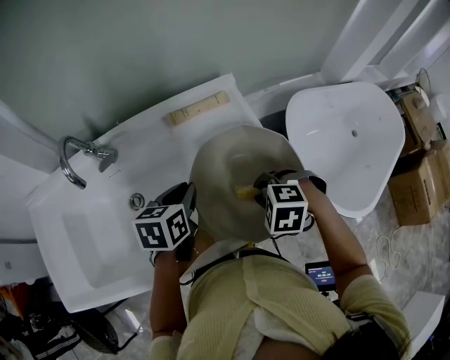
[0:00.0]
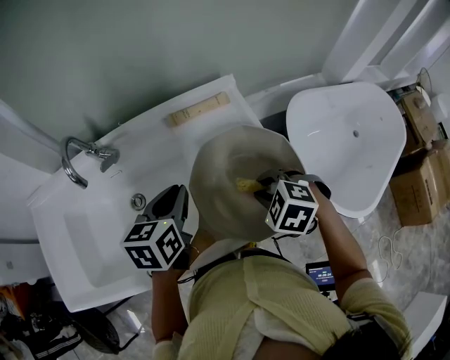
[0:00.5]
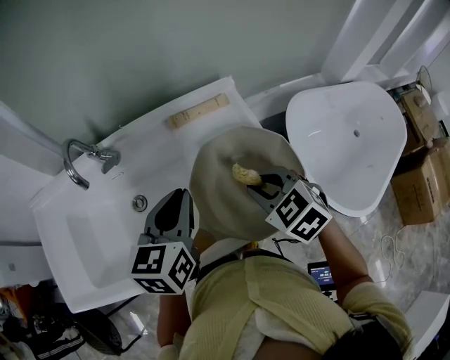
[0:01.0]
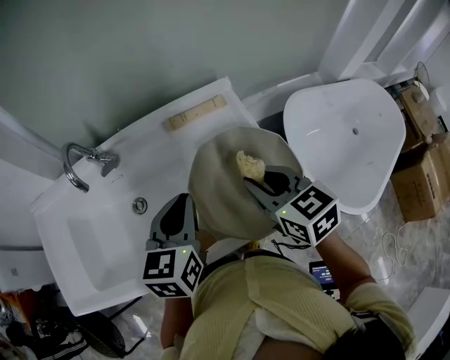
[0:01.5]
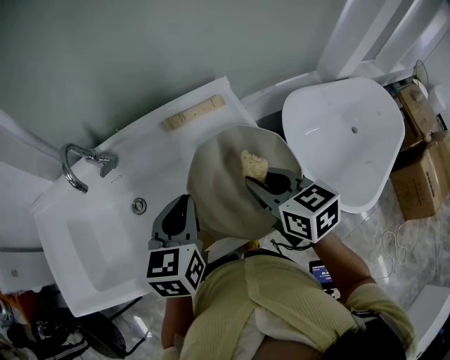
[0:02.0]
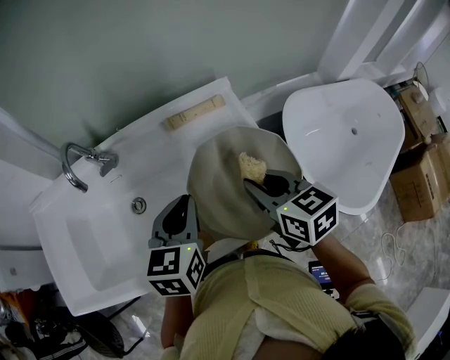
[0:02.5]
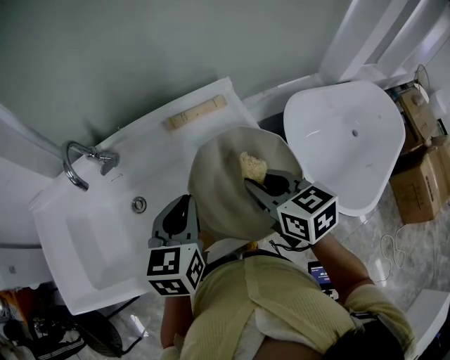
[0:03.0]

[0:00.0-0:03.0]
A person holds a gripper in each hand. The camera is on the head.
0:00.0 to 0:01.5: Both grippers move upward, roughly 10 cm. The left gripper rotates about 20 degrees. The right gripper tilts its fingers approximately 40 degrees upward.
0:01.5 to 0:03.0: The grippers make only small movements.

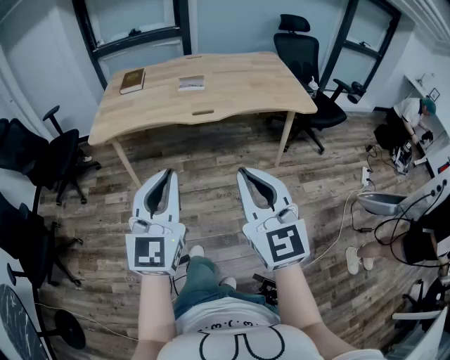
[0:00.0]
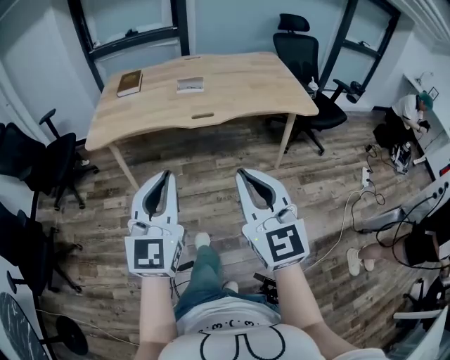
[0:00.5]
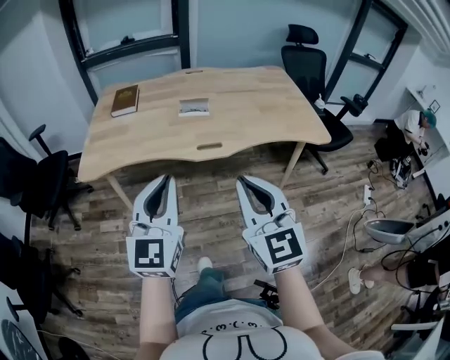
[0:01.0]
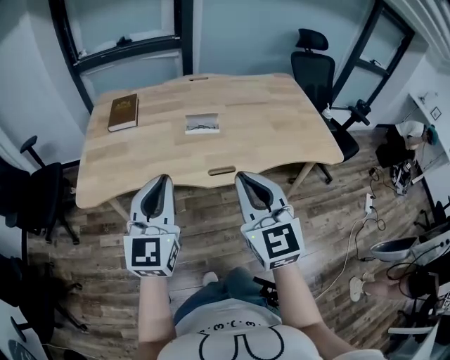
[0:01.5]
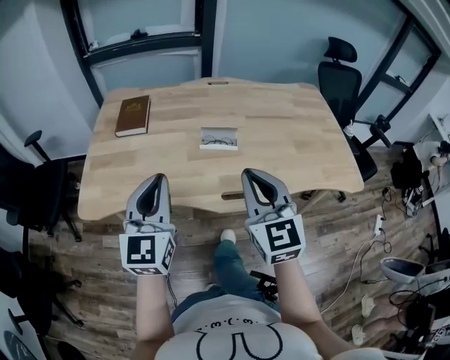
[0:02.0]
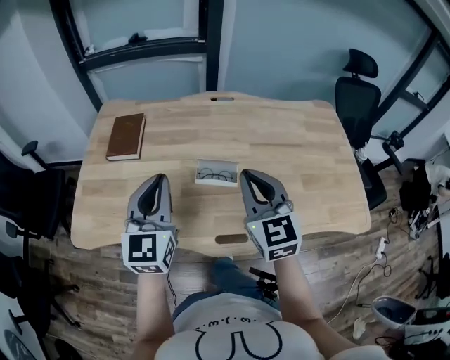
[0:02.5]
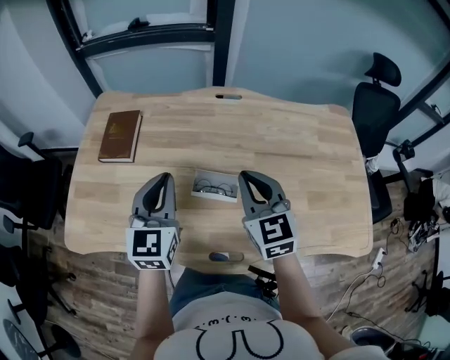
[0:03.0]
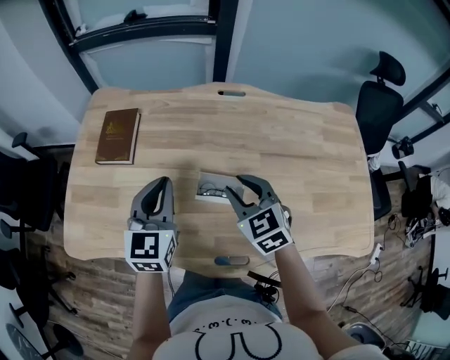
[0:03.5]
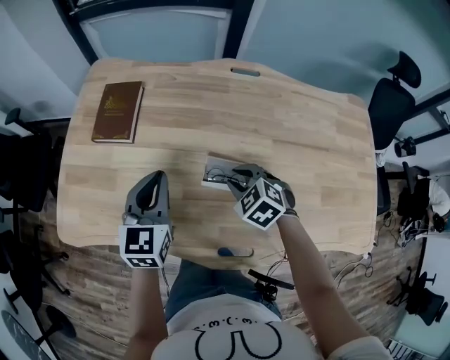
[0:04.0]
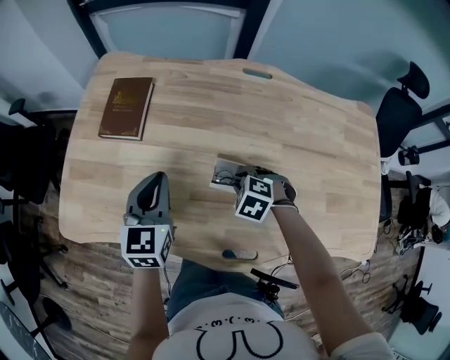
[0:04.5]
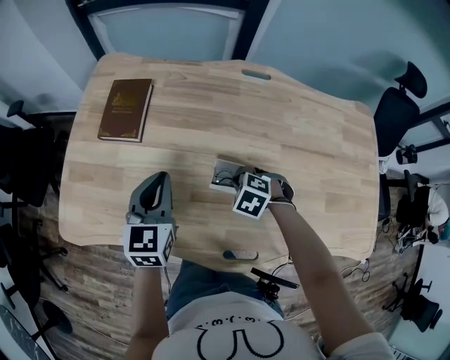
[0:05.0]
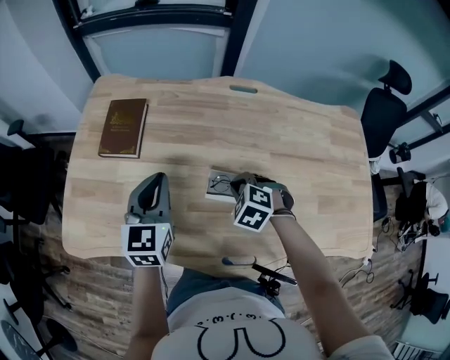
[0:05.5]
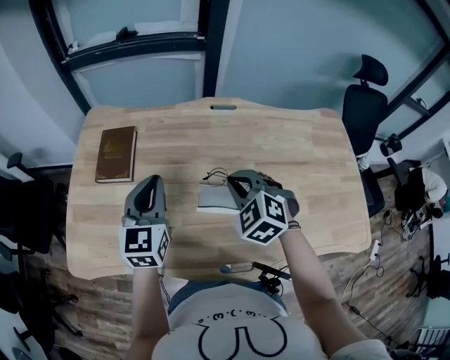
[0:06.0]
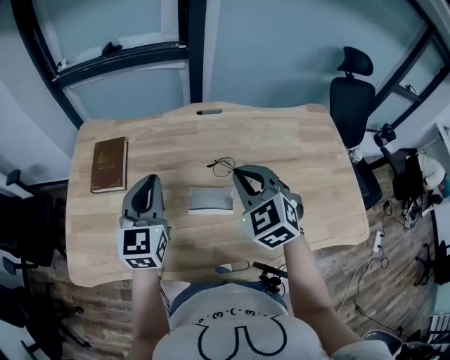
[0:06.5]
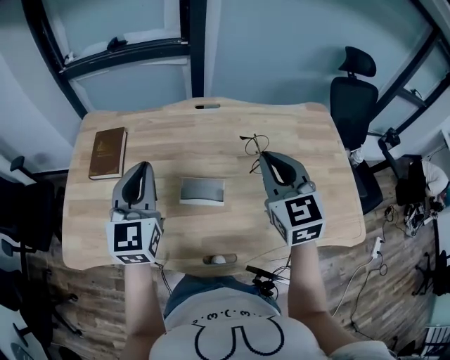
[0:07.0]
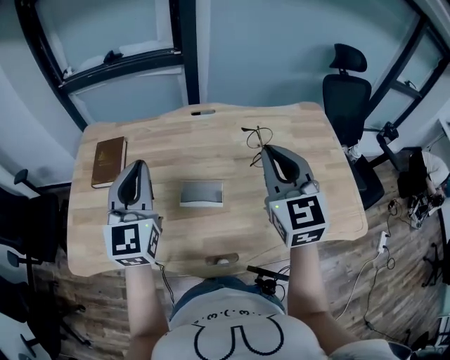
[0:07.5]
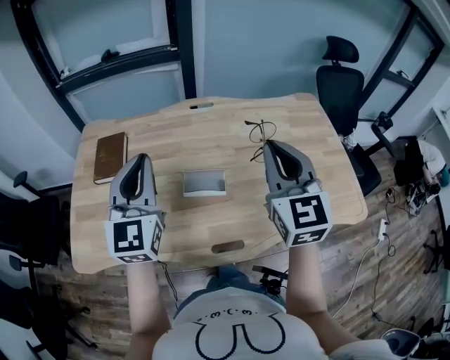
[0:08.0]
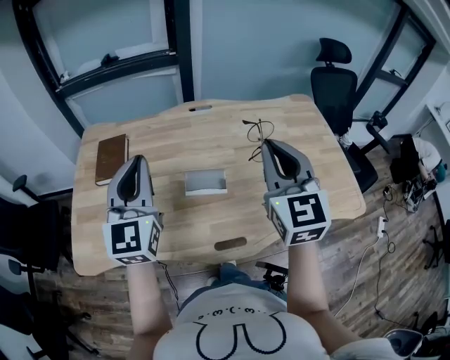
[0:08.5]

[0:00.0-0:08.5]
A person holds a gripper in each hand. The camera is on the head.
0:00.0 to 0:02.0: Both grippers are carried forward, some 50 cm.
0:02.0 to 0:04.0: Both grippers travel together forward and downward, some 35 cm. The left gripper rotates approximately 20 degrees; the right gripper angles its fingers downward, by some 50 degrees, and opens up.
0:04.0 to 0:06.5: The right gripper heads upward, covering roughly 20 cm, turns by some 30 degrees, and closes. The left gripper heads upward, covering approximately 10 cm.
0:06.5 to 0:08.5: The left gripper goes roughly 15 cm upward and backward. The right gripper shifts about 20 cm upward, backward and to the right, and changes its angle by roughly 40 degrees.

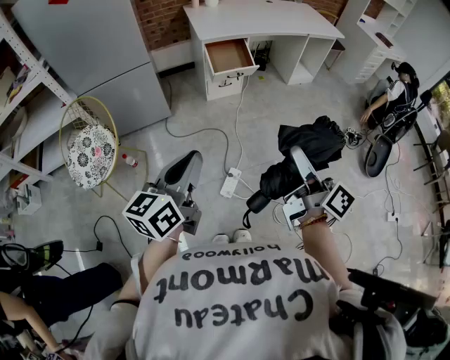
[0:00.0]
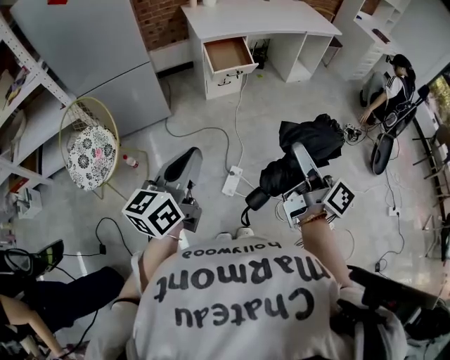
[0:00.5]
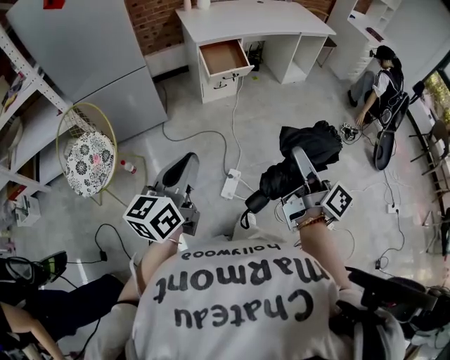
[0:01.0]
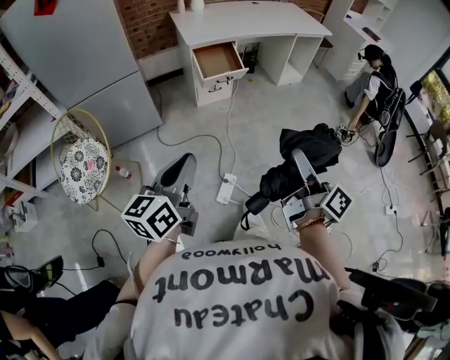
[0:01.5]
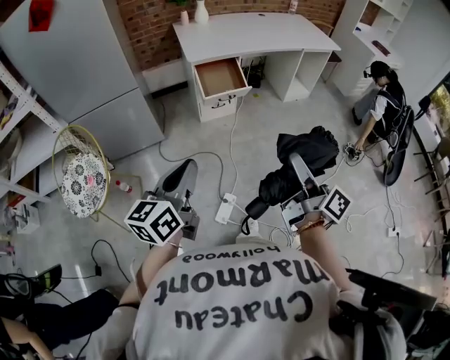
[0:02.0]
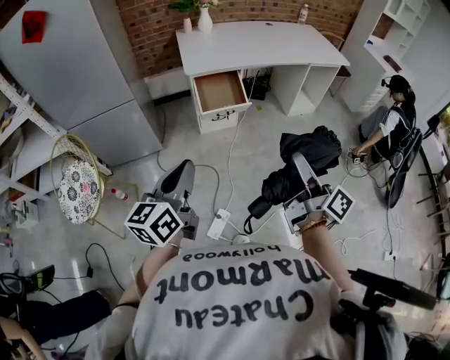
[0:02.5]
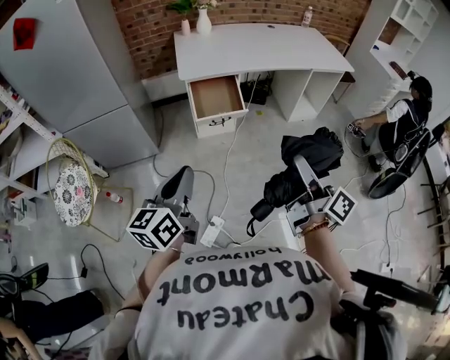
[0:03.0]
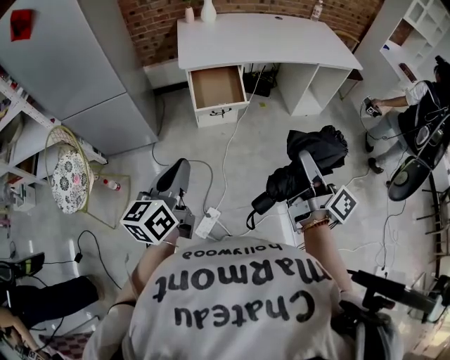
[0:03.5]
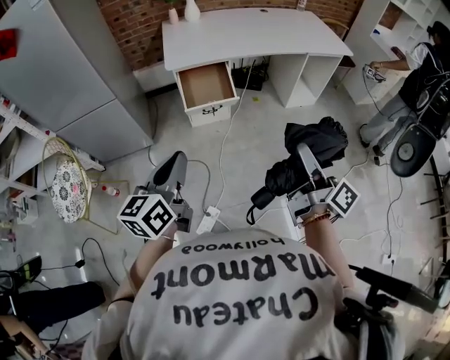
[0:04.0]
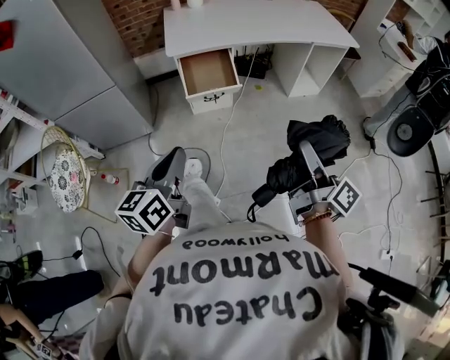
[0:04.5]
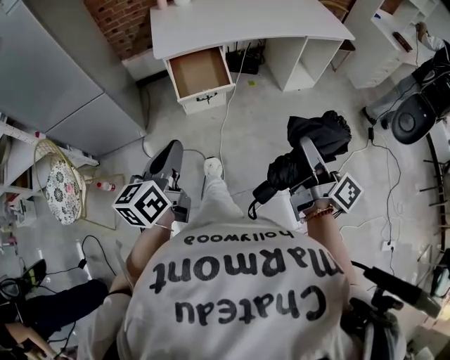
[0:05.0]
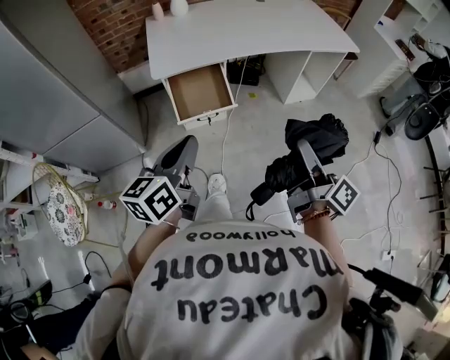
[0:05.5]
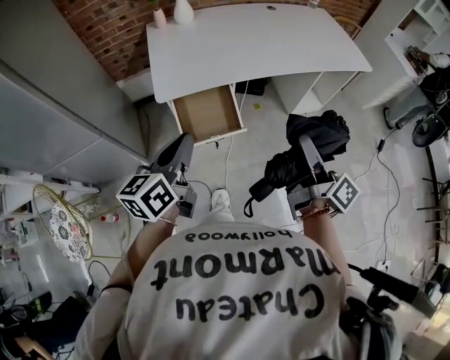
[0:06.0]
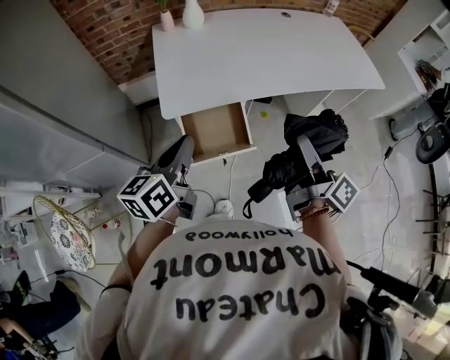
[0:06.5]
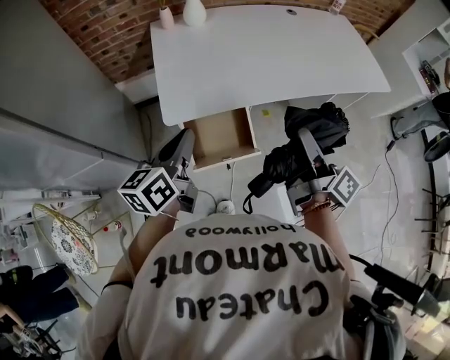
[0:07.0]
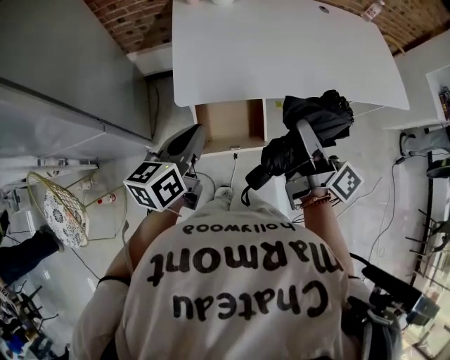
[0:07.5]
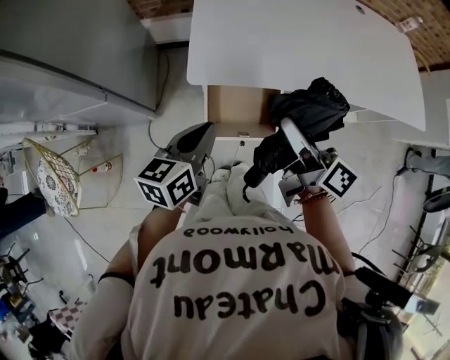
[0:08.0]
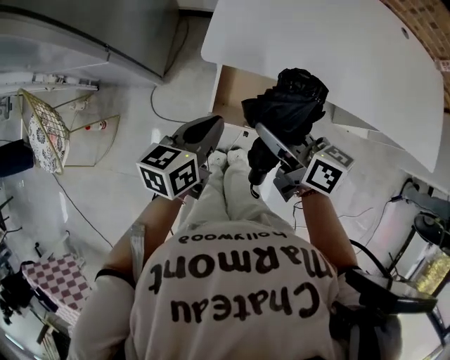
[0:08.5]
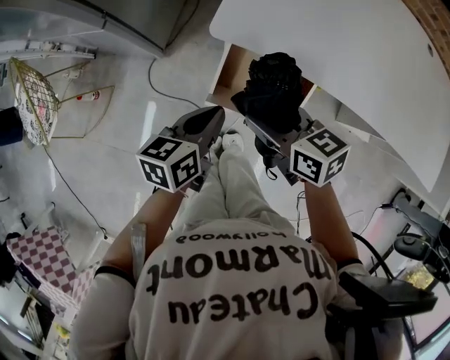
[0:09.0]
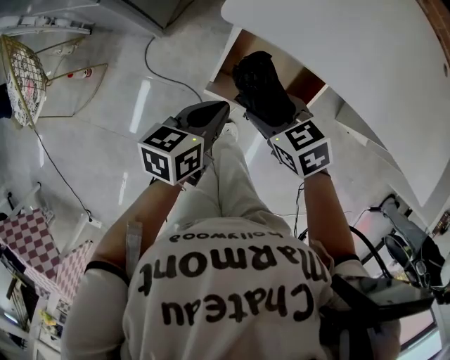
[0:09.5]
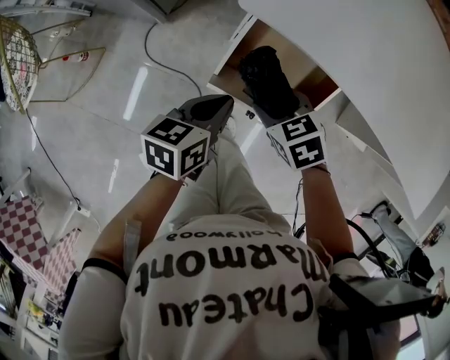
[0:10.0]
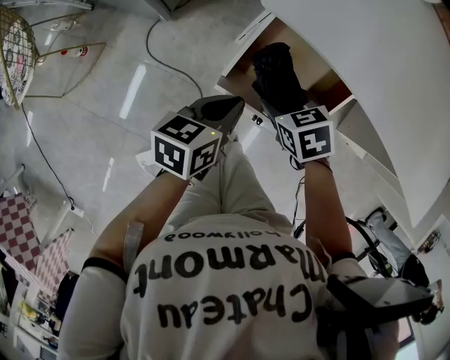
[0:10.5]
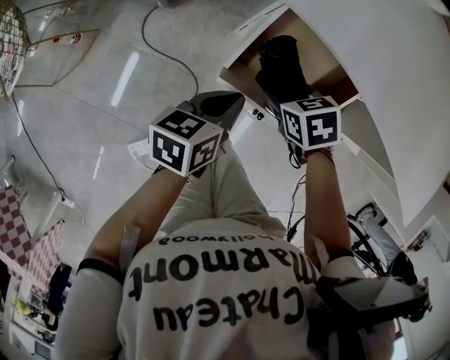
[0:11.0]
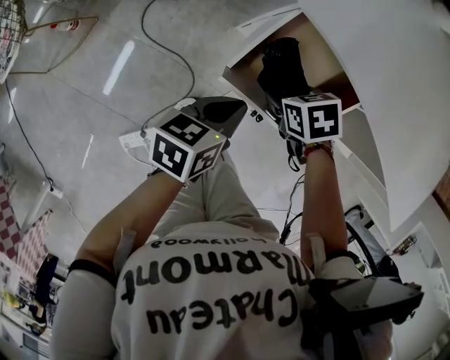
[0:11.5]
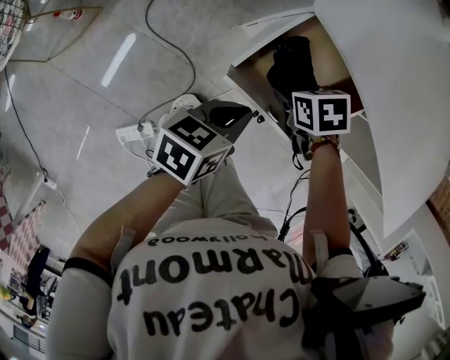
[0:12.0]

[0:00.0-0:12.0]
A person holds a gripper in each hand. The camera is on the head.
0:00.0 to 0:02.0: The grippers both shift forward by about 15 cm.
0:02.0 to 0:04.0: The two grippers go about 25 cm forward and to the right.
0:04.0 to 0:06.0: The grippers both shift forward by about 30 cm.
0:06.0 to 0:08.0: The left gripper is displaced downward, forward and to the left by approximately 20 cm. Meanwhile the right gripper is displaced forward and to the left by approximately 25 cm, and rotates approximately 30 degrees.
0:08.0 to 0:10.0: The left gripper heads downward, covering roughly 20 cm, and turns by about 20 degrees. The right gripper is displaced downward by about 30 cm, and points its fingers about 60 degrees further downward.
0:10.0 to 0:12.0: The left gripper shifts by approximately 5 cm; the right gripper goes about 10 cm downward, and turns by approximately 20 degrees.

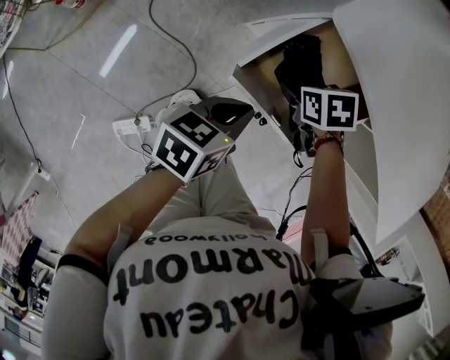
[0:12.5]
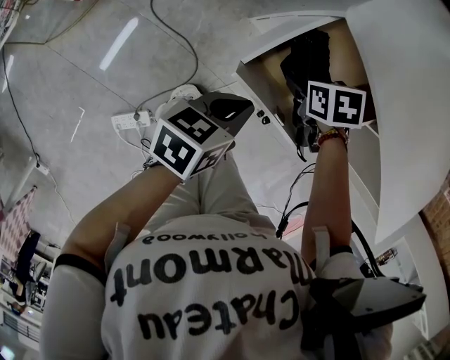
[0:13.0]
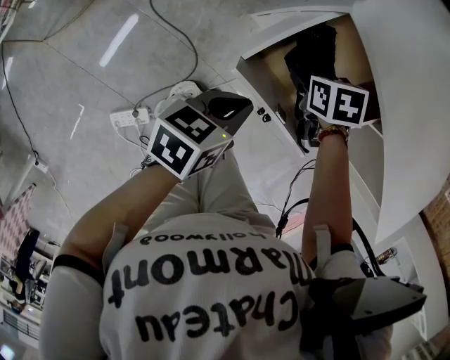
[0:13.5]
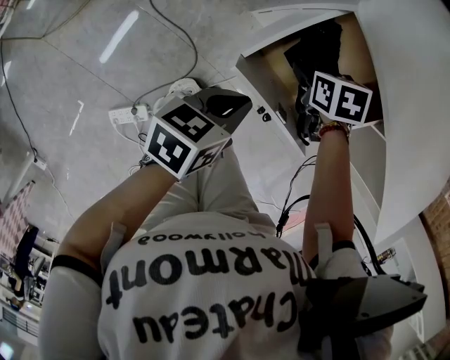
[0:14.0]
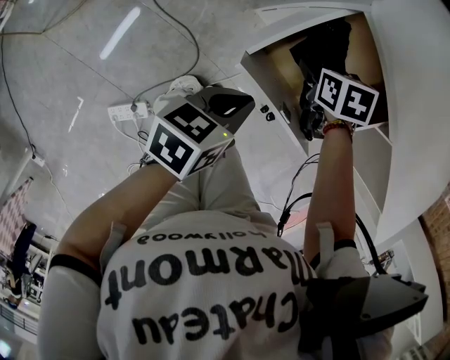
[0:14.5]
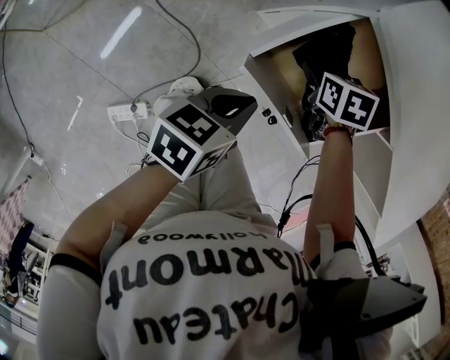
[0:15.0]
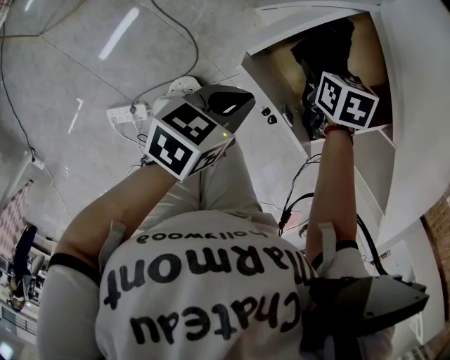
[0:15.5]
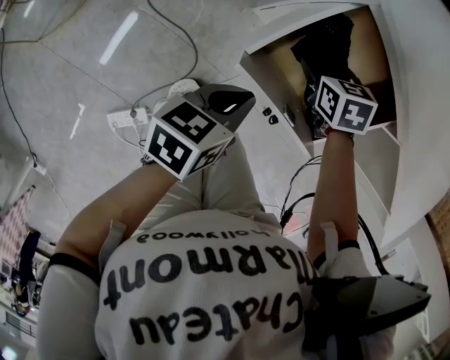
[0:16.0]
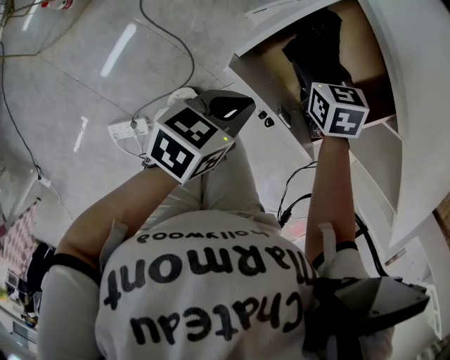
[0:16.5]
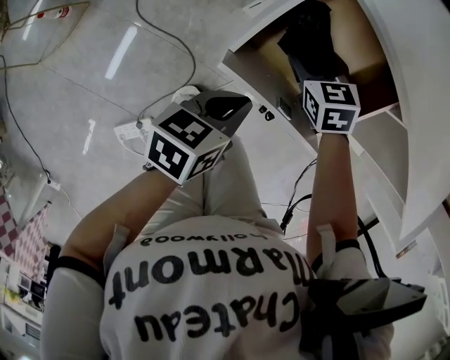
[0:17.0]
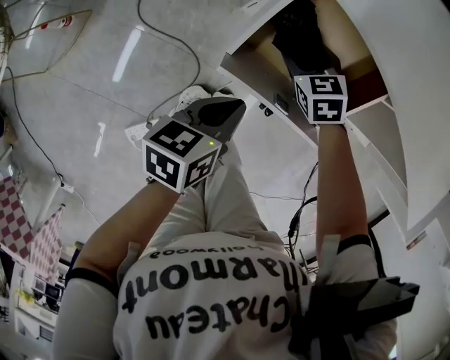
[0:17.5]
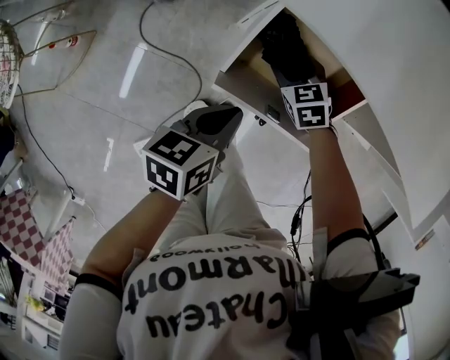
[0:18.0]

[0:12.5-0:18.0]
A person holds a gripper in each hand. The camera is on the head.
0:12.5 to 0:14.5: The right gripper moves roughly 5 cm.
0:14.5 to 0:16.0: The grippers move only a little.
0:16.0 to 0:18.0: The left gripper heads upward, covering some 5 cm.
